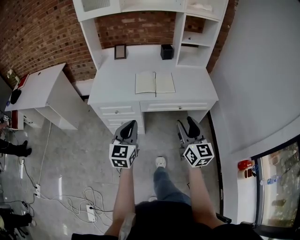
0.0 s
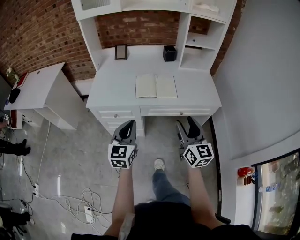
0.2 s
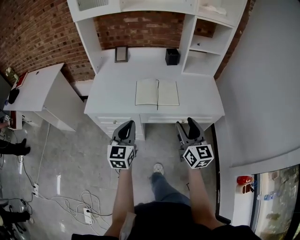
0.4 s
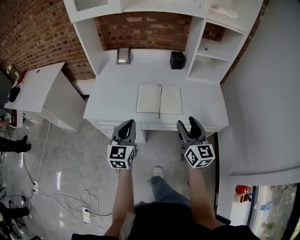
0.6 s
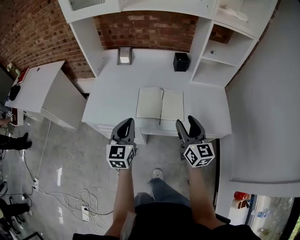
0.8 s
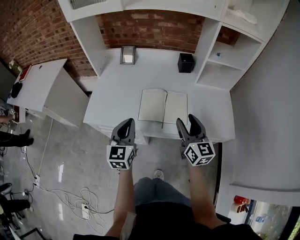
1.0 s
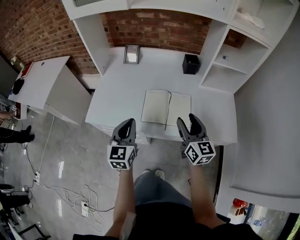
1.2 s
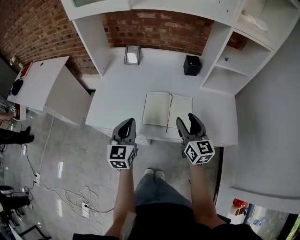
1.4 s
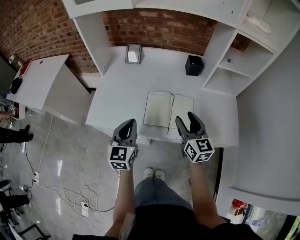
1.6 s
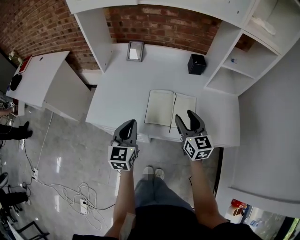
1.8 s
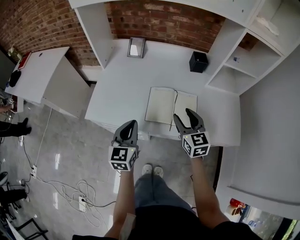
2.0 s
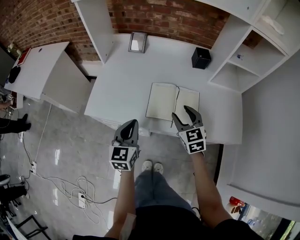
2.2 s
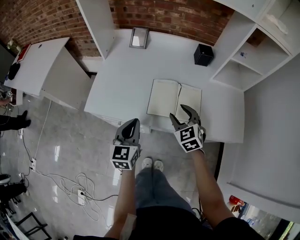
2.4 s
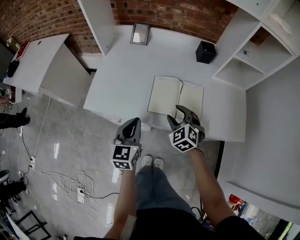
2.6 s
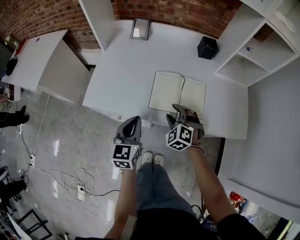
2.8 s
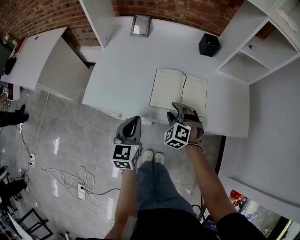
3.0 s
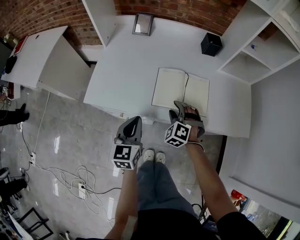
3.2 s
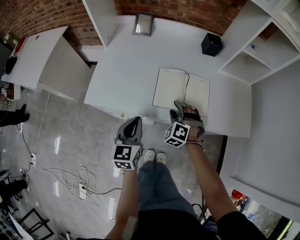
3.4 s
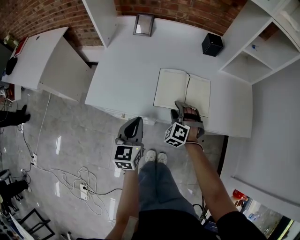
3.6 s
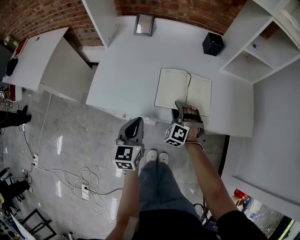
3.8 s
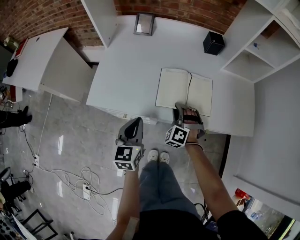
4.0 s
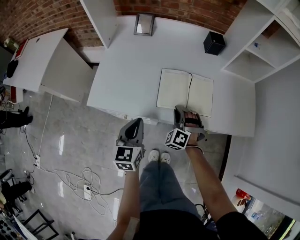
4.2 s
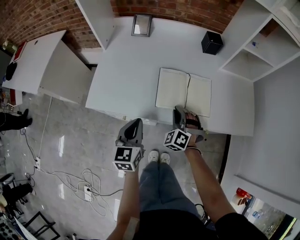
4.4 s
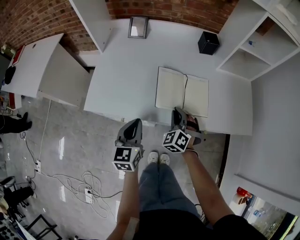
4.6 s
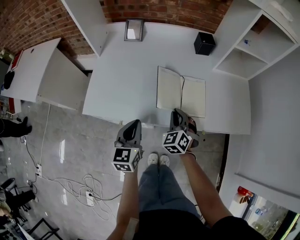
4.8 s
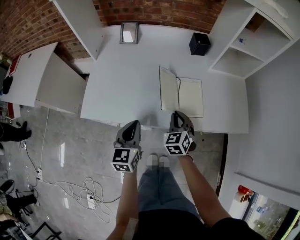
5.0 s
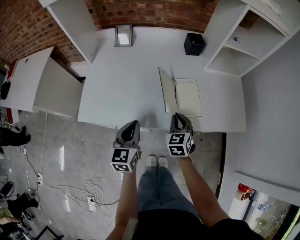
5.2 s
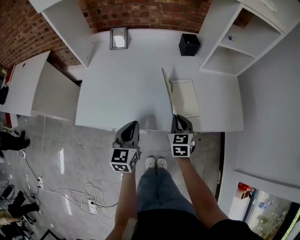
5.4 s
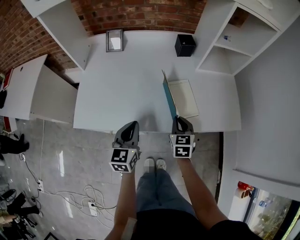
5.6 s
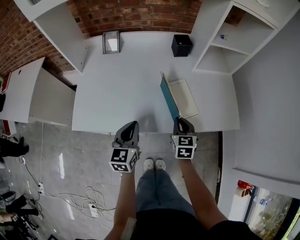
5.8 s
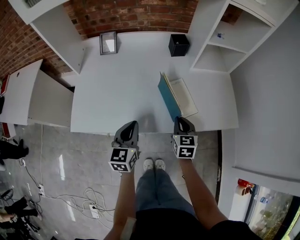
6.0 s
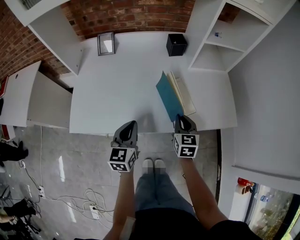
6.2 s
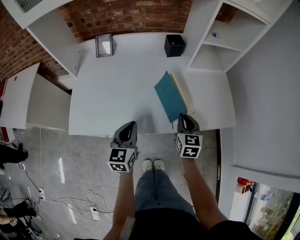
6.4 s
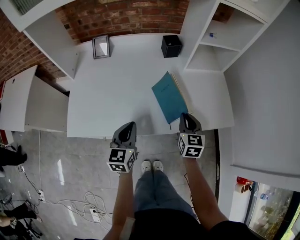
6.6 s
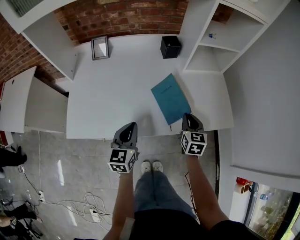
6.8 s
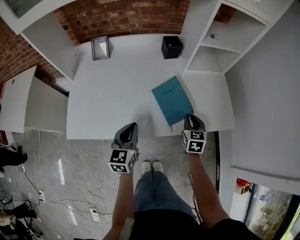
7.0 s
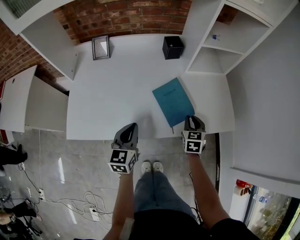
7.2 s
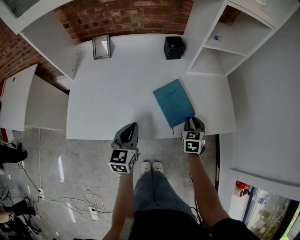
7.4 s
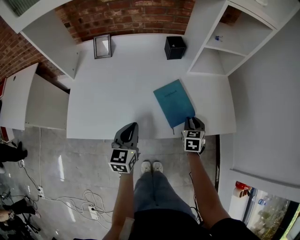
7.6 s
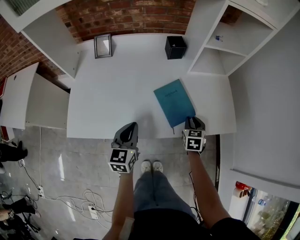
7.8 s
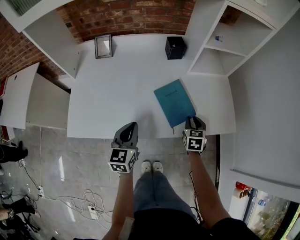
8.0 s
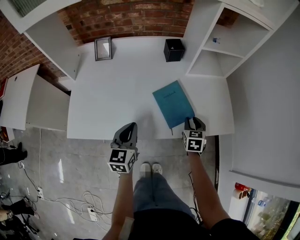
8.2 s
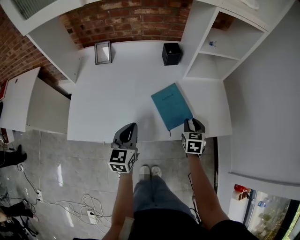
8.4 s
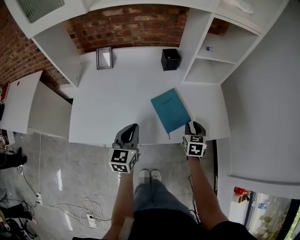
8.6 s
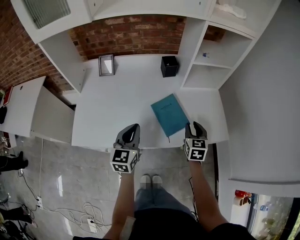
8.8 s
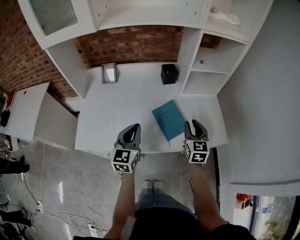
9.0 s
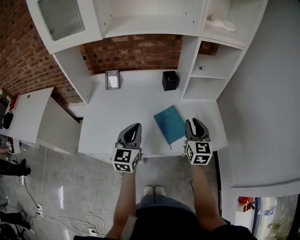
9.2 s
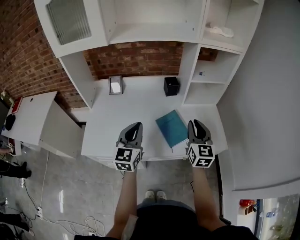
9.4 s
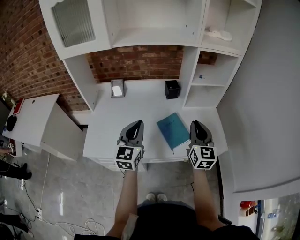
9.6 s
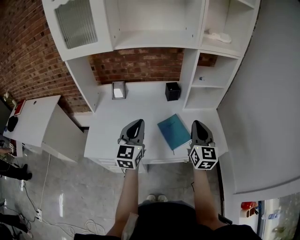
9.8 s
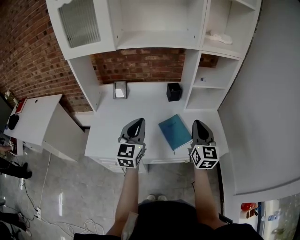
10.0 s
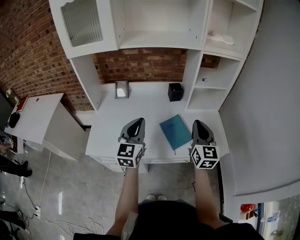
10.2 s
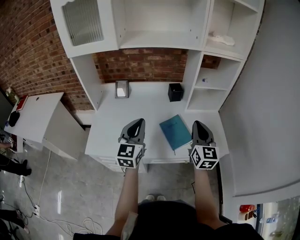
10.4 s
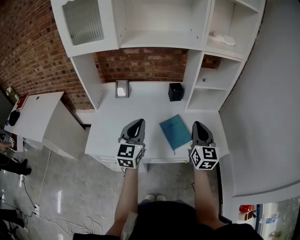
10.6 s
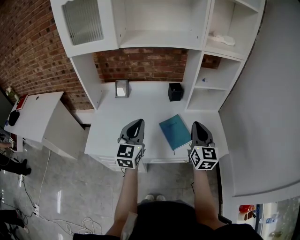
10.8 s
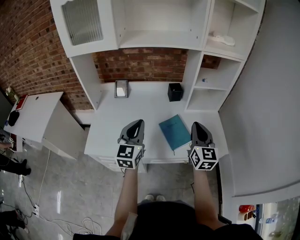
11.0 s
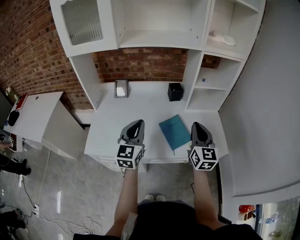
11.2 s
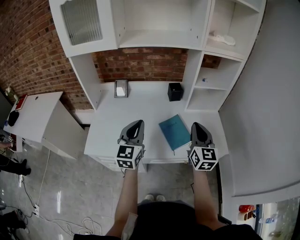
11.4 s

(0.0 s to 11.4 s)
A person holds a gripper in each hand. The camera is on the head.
0.0 s - 1.4 s: Both grippers travel together forward, about 30 cm.
1.4 s - 2.8 s: The left gripper goes roughly 10 cm downward. The right gripper is displaced downward and to the left by about 20 cm, and rolls counterclockwise, seen from behind, by approximately 60 degrees.
2.8 s - 4.2 s: The right gripper closes.
4.2 s - 5.6 s: The left gripper goes some 10 cm to the right and forward, while the right gripper heads to the right, covering about 10 cm, and rolls clockwise, seen from behind, by some 70 degrees.
5.6 s - 7.2 s: The left gripper ends up roughly 5 cm from where it was. Meanwhile the right gripper shifts approximately 15 cm to the right and forward.
7.2 s - 8.6 s: The grippers stay close to where they were, moving slightly.
8.6 s - 10.0 s: The right gripper is displaced upward by some 25 cm, tips its fingers upward by about 40 degrees, and closes. The left gripper goes approximately 15 cm upward, and swivels roughly 20 degrees.
10.0 s - 11.4 s: Both grippers stay about where they are.

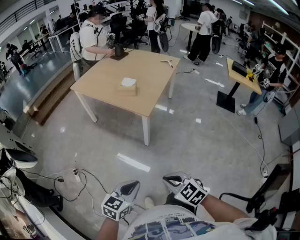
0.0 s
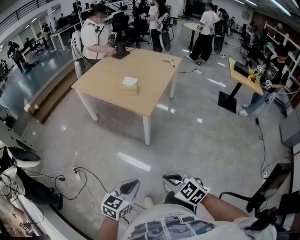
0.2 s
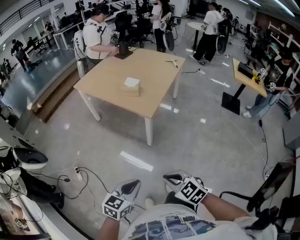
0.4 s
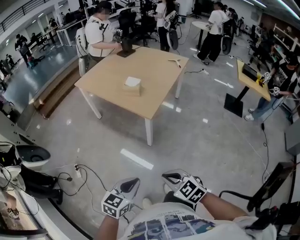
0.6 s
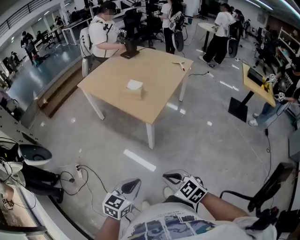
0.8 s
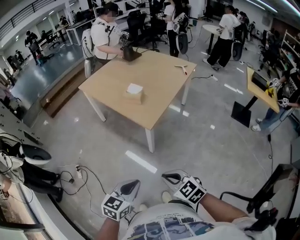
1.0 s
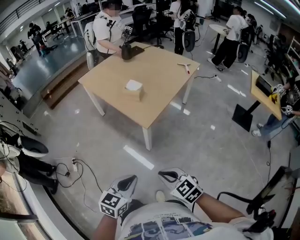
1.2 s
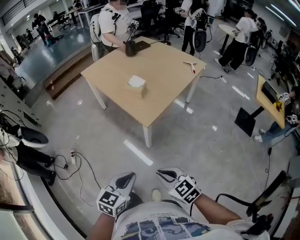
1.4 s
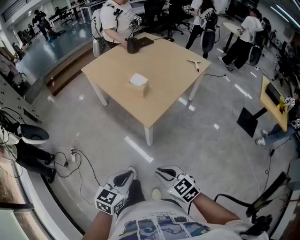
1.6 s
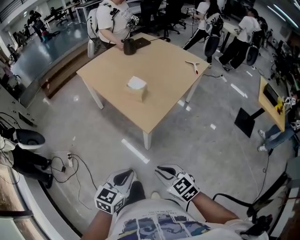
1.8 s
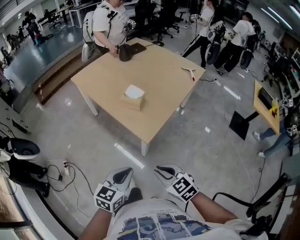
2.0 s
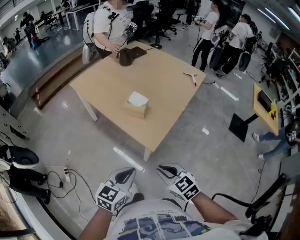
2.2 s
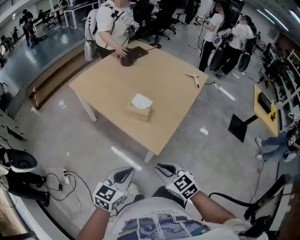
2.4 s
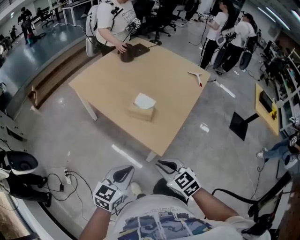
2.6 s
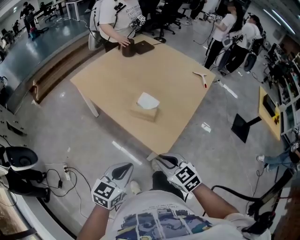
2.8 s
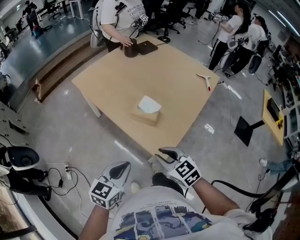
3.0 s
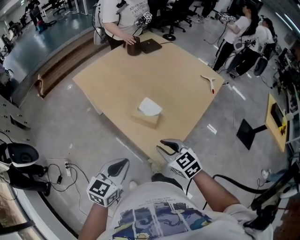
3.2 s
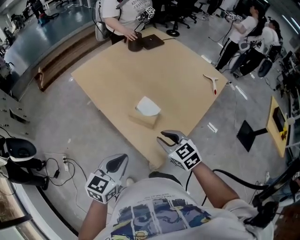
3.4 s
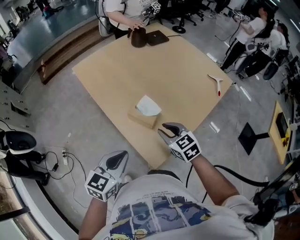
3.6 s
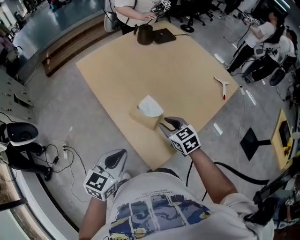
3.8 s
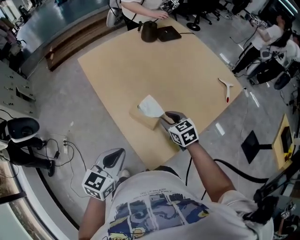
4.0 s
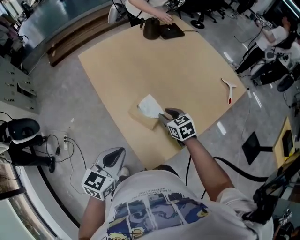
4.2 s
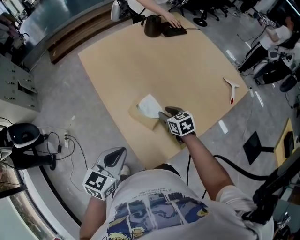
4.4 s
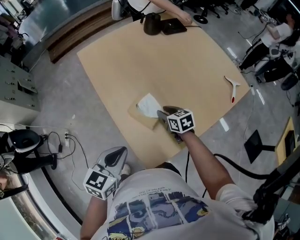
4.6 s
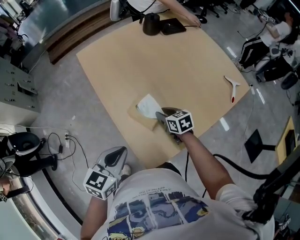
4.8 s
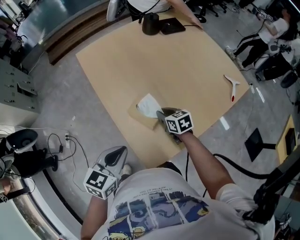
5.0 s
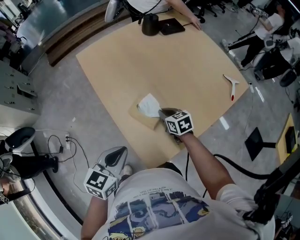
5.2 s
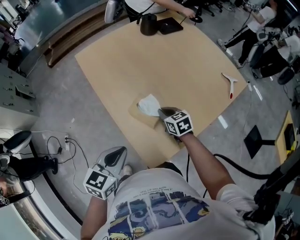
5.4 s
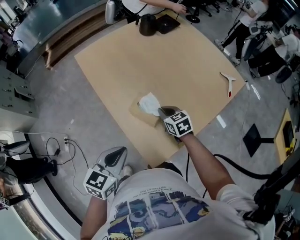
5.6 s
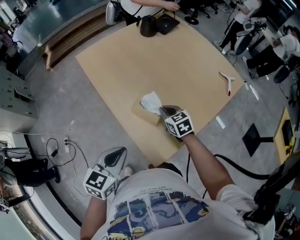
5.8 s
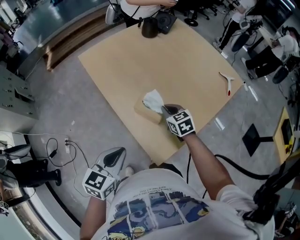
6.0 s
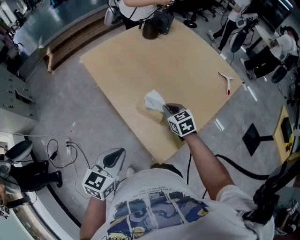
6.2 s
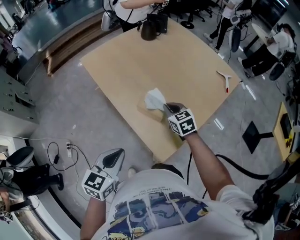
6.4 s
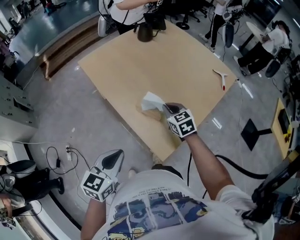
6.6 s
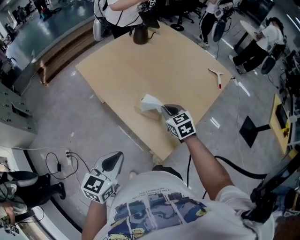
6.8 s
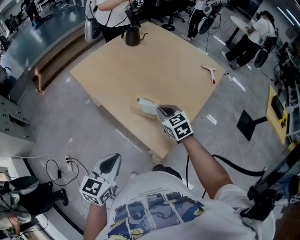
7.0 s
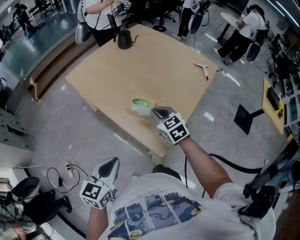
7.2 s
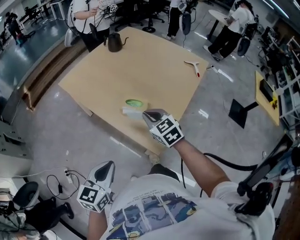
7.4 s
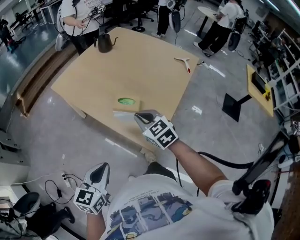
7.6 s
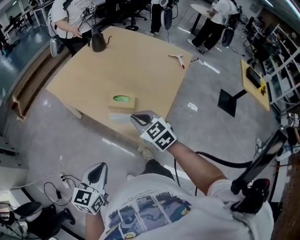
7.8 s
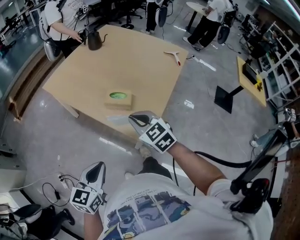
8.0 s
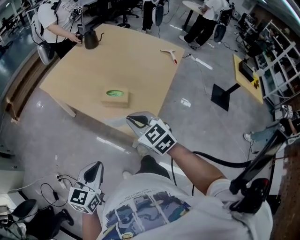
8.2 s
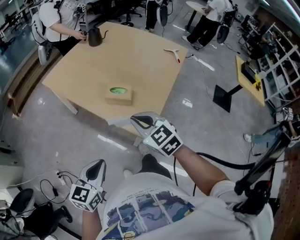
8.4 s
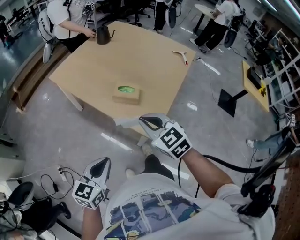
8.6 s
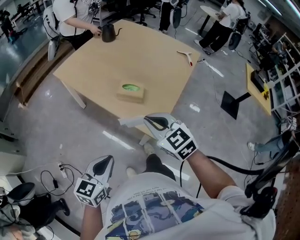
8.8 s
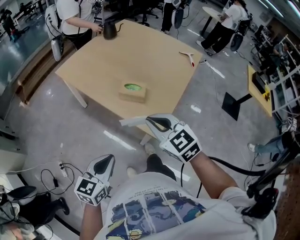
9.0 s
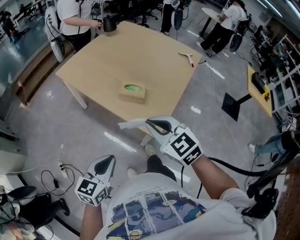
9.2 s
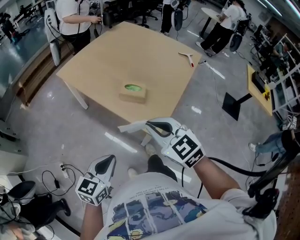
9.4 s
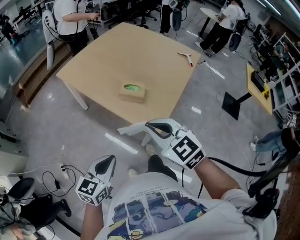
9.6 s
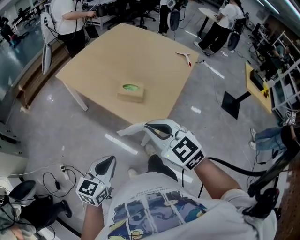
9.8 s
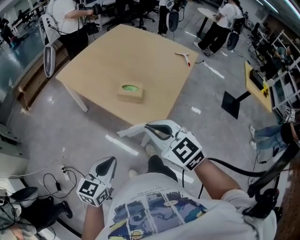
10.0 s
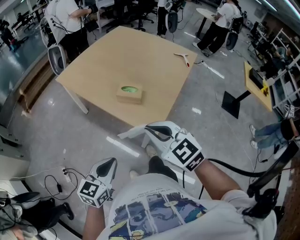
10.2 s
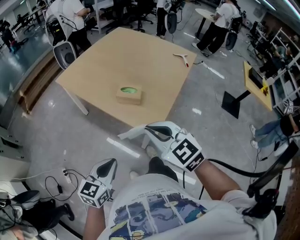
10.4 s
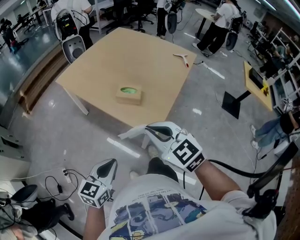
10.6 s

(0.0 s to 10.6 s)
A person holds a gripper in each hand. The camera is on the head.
0.0 s - 1.6 s: Both grippers travel together forward and to the right, some 25 cm.
1.6 s - 3.0 s: The two grippers go approximately 30 cm forward.
3.0 s - 4.6 s: The right gripper is displaced forward and downward by about 30 cm, and changes its angle by about 20 degrees, while the left gripper travels forward and to the right by roughly 15 cm.
4.6 s - 6.0 s: The right gripper heads upward, covering some 5 cm, and closes its fingers; the left gripper shifts some 5 cm to the left.
6.0 s - 7.6 s: The left gripper travels backward by roughly 10 cm; the right gripper is displaced backward and upward by some 20 cm.
7.6 s - 9.0 s: The right gripper goes some 15 cm backward and upward, while the left gripper moves approximately 5 cm.
9.0 s - 10.6 s: The right gripper travels backward by about 5 cm.

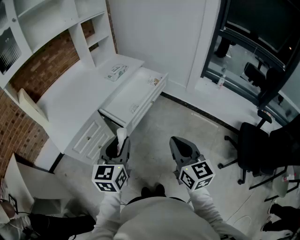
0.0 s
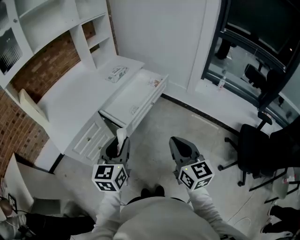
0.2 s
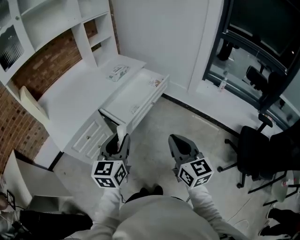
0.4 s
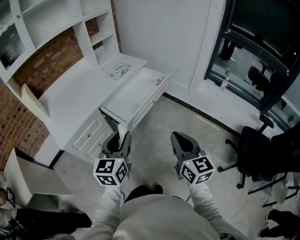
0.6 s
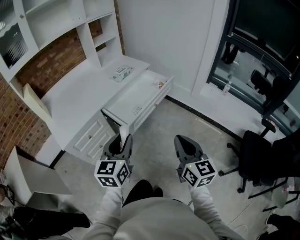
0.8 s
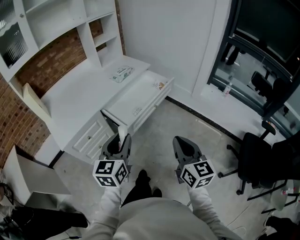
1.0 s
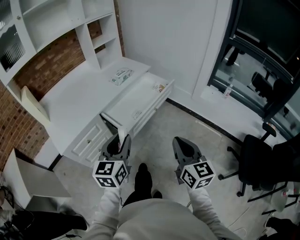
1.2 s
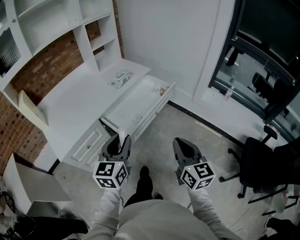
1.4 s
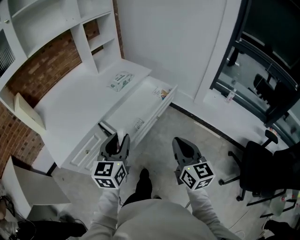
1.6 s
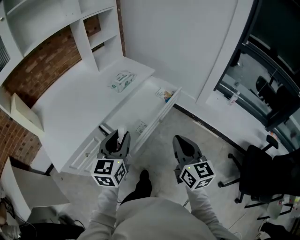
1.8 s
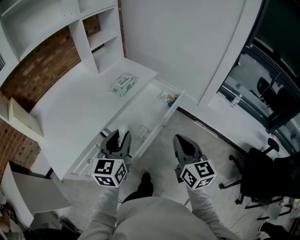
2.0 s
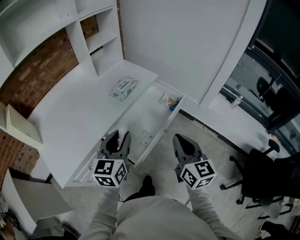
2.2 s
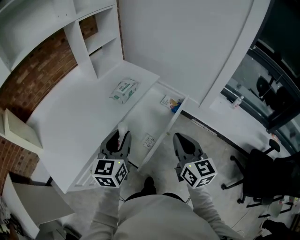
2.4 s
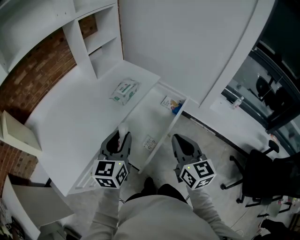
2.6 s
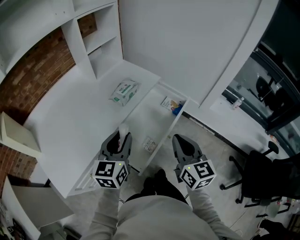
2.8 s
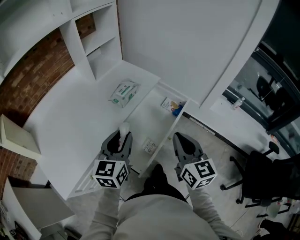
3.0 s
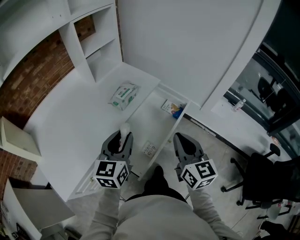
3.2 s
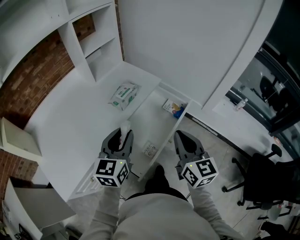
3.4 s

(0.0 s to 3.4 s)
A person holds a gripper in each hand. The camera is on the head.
0.0 s - 1.6 s: The grippers both shift forward by about 15 cm.
1.6 s - 3.4 s: Both grippers travel together forward, approximately 25 cm.
